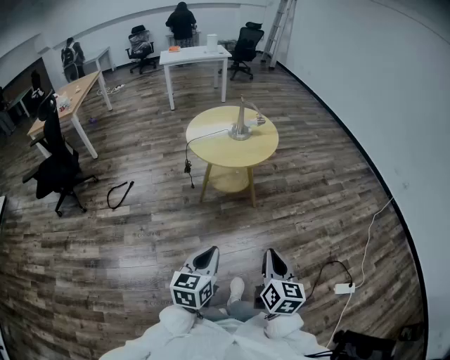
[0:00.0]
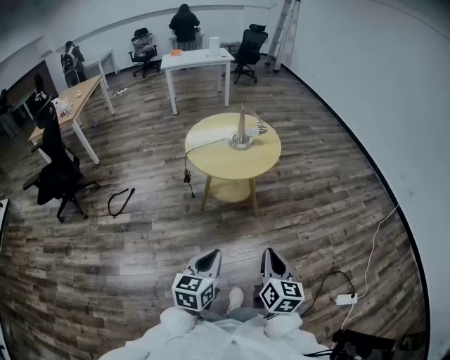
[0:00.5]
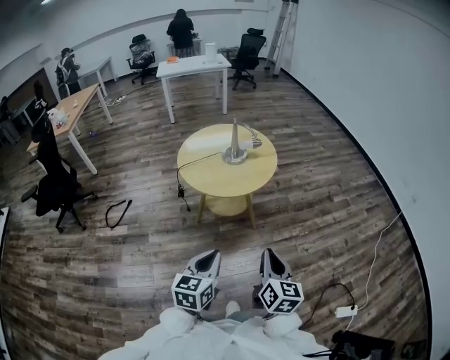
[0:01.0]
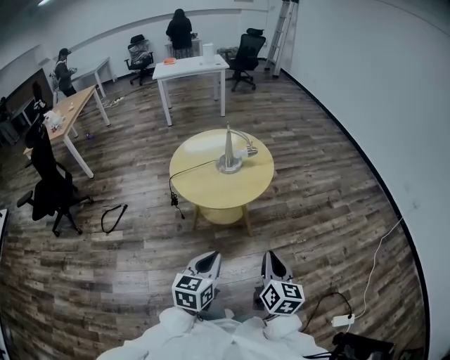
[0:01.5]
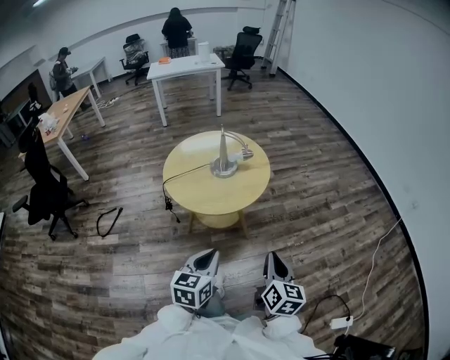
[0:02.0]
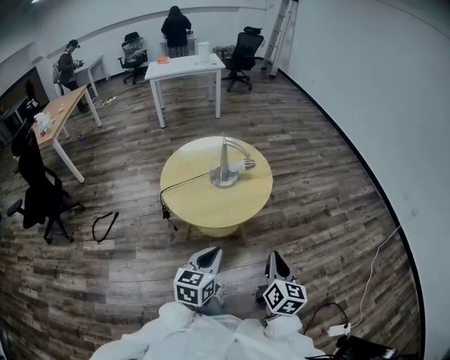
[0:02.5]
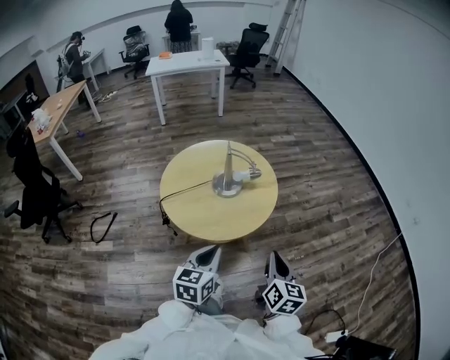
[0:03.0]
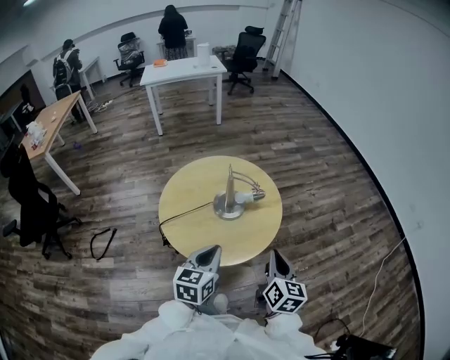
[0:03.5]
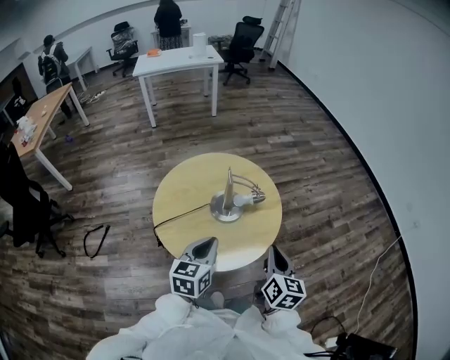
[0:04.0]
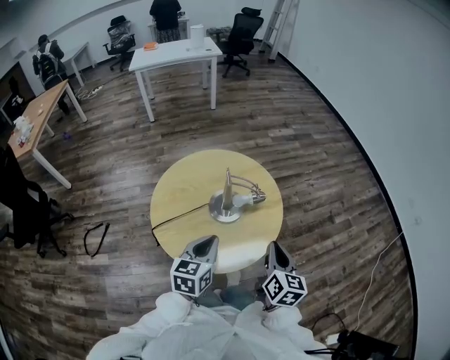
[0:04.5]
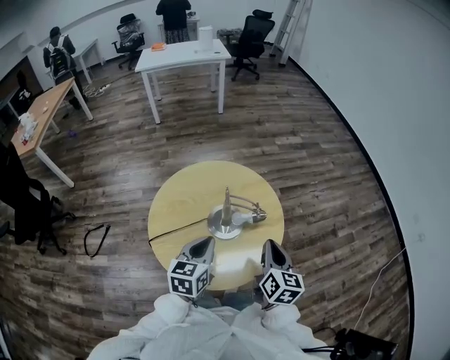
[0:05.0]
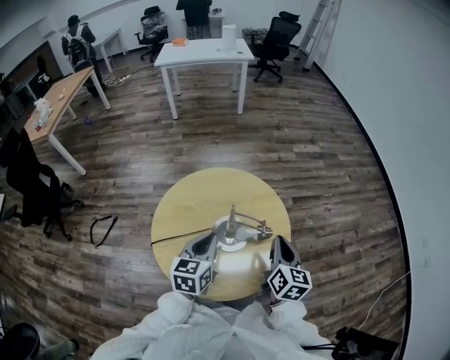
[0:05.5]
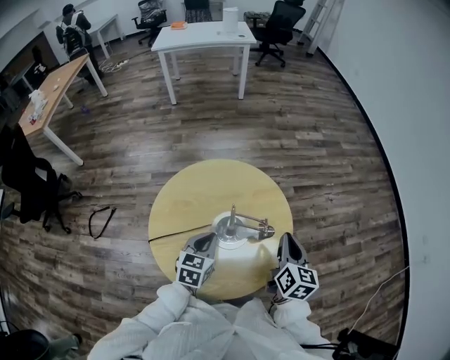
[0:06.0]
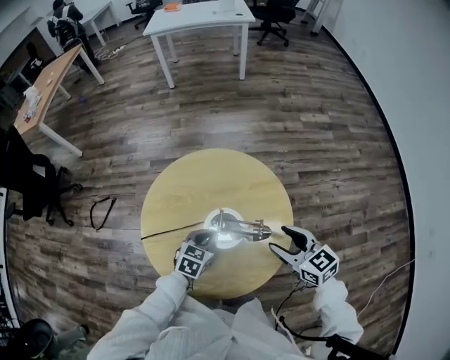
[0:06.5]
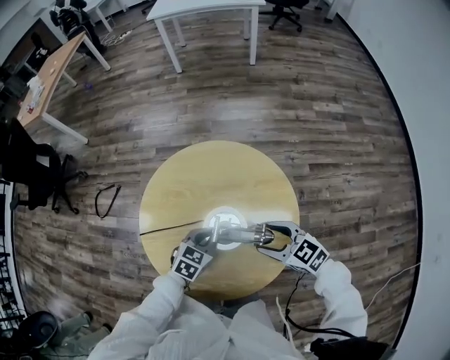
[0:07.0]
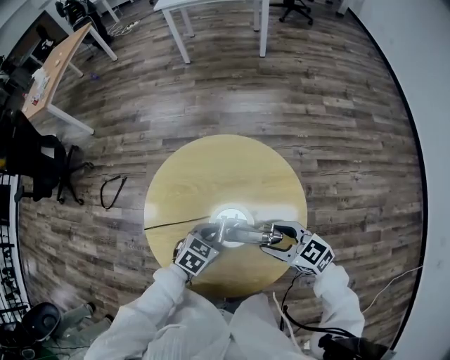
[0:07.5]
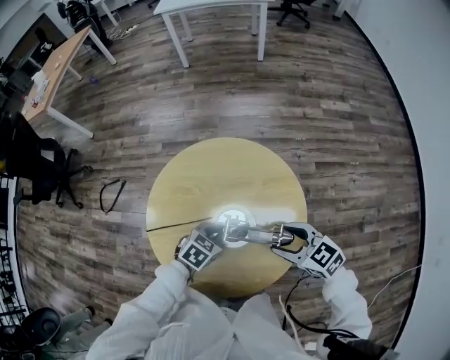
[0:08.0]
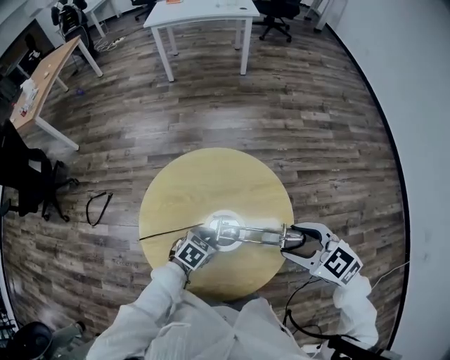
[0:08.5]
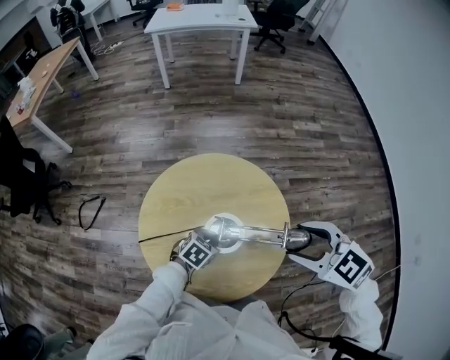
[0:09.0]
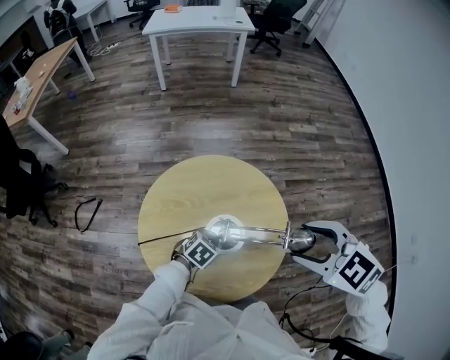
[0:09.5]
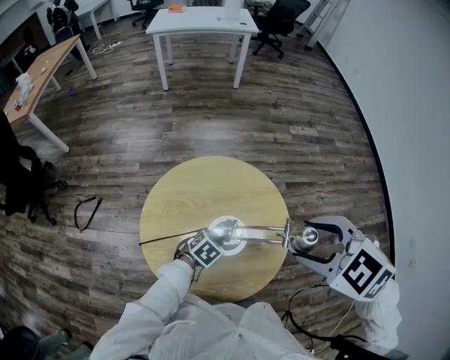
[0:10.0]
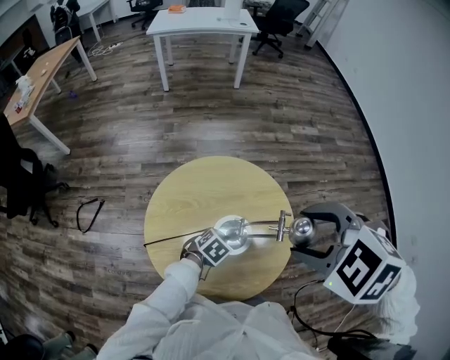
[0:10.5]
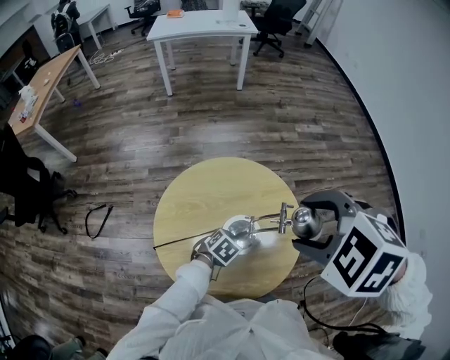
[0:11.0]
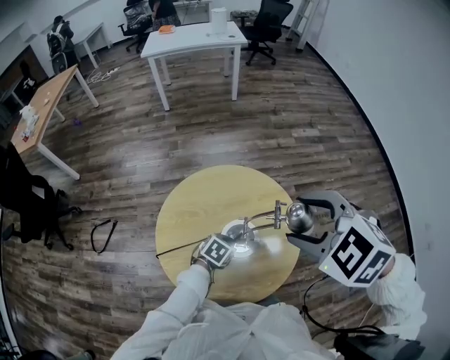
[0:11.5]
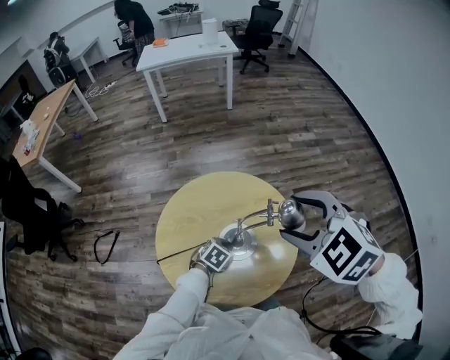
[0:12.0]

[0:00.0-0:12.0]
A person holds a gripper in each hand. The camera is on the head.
0:00.0 to 0:02.0: The grippers both shift forward by about 30 cm.
0:02.0 to 0:04.0: The two grippers go approximately 35 cm forward.
0:04.0 to 0:06.0: The left gripper travels forward and downward by approximately 20 cm; the right gripper travels forward by approximately 25 cm.
0:06.0 to 0:08.0: Both grippers travel together downward, about 10 cm. The left gripper turns by some 30 degrees; the right gripper swivels some 70 degrees, and opens up.
0:08.0 to 0:10.0: The right gripper goes approximately 25 cm upward, and rotates roughly 30 degrees.

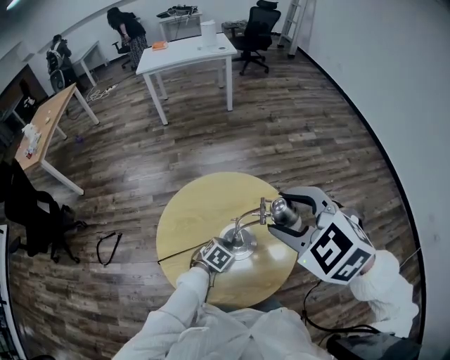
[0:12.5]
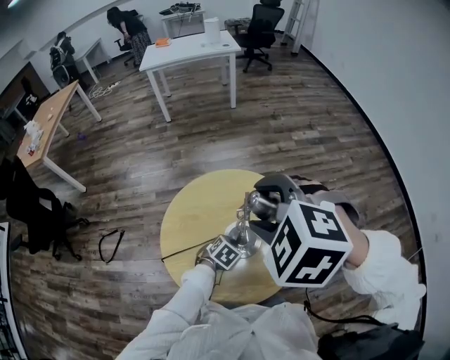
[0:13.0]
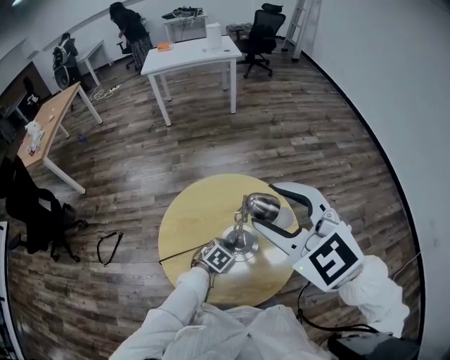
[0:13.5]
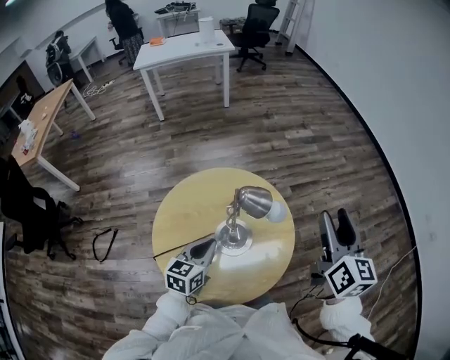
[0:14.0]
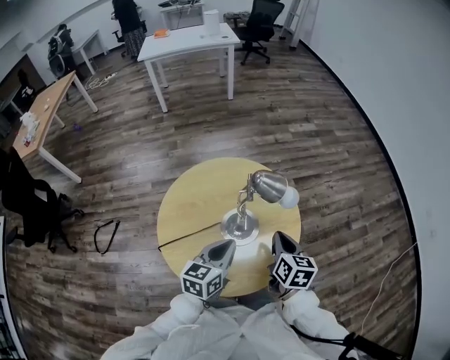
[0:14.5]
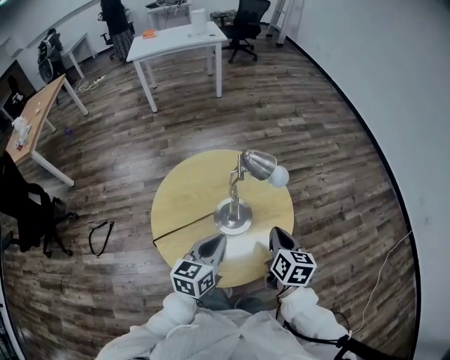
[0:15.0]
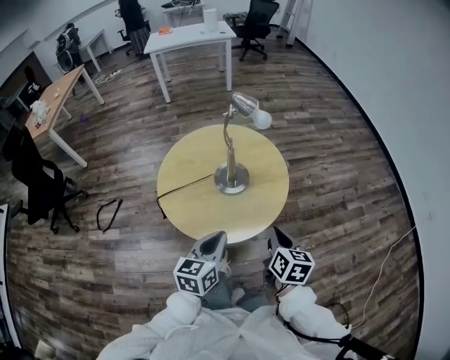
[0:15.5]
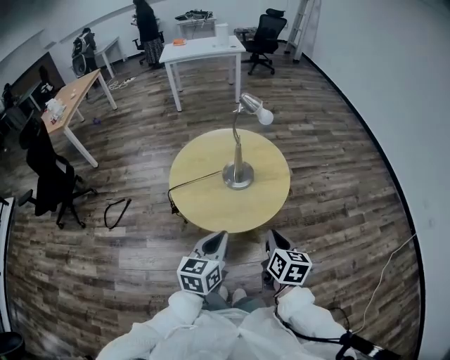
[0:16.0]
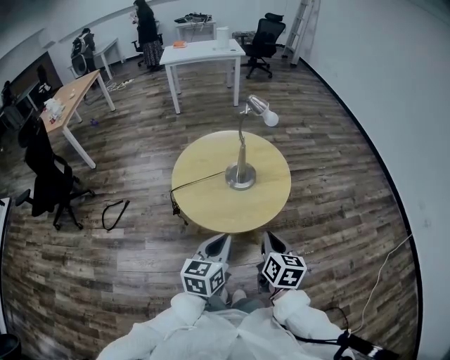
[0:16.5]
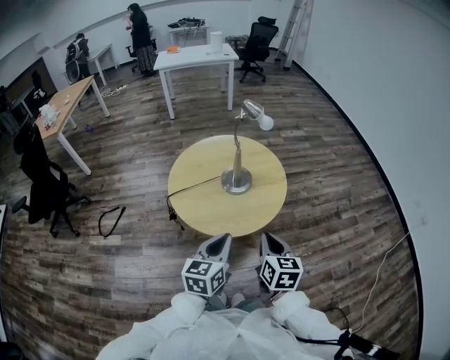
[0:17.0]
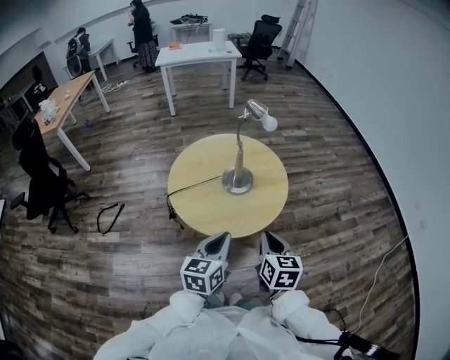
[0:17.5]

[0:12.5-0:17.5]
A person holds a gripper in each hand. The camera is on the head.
0:12.5 to 0:15.0: The left gripper is displaced upward and backward by some 20 cm, and tips its fingers upward by approximately 40 degrees; the right gripper shifts approximately 25 cm downward, rotates around the line of its fingers by approximately 70 degrees, clockwise from behind, and closes its fingers.
0:15.0 to 0:17.5: Both grippers travel together backward, roughly 25 cm.

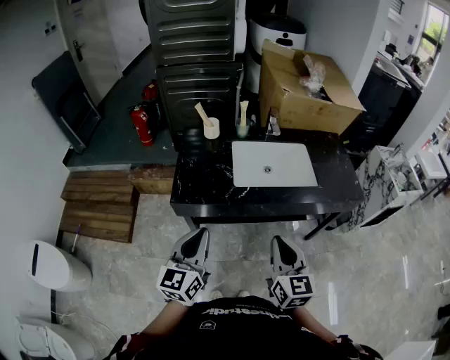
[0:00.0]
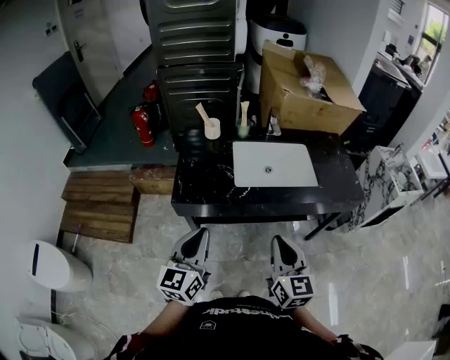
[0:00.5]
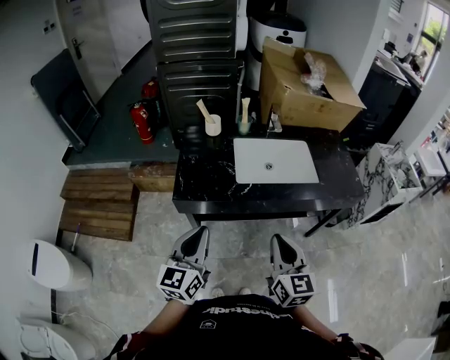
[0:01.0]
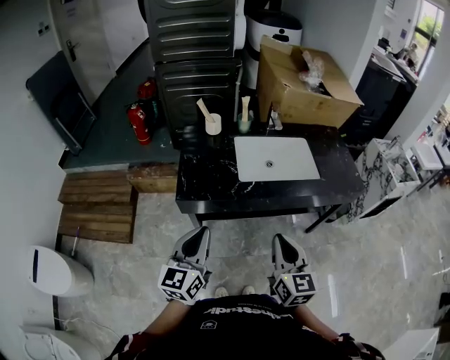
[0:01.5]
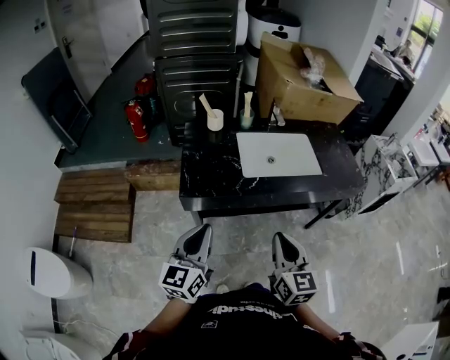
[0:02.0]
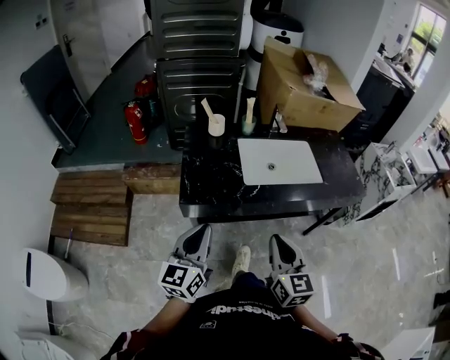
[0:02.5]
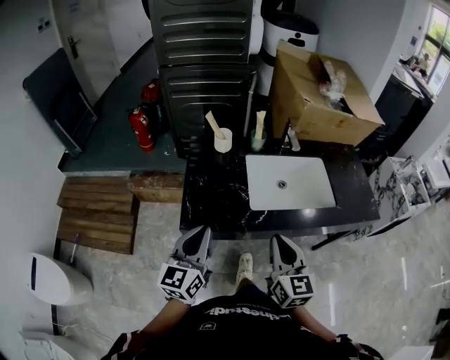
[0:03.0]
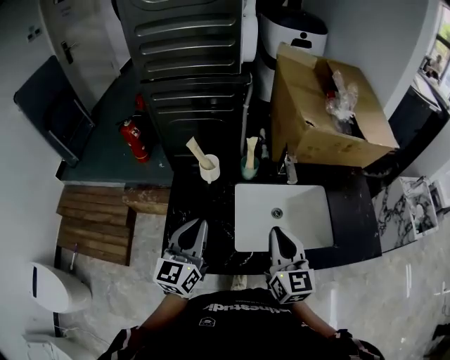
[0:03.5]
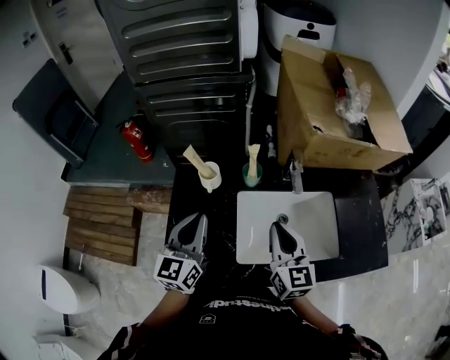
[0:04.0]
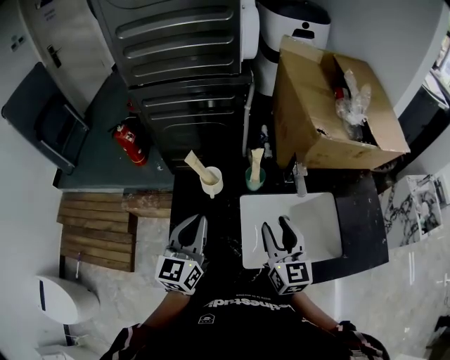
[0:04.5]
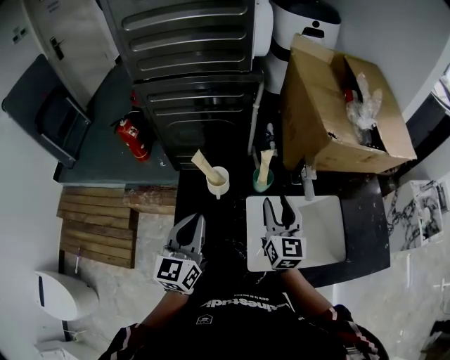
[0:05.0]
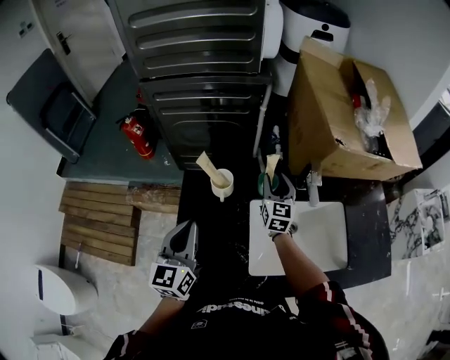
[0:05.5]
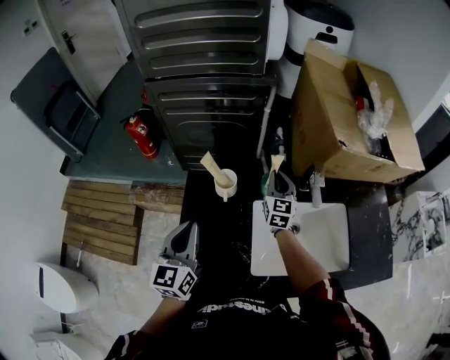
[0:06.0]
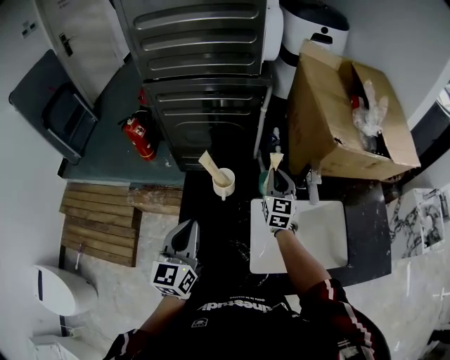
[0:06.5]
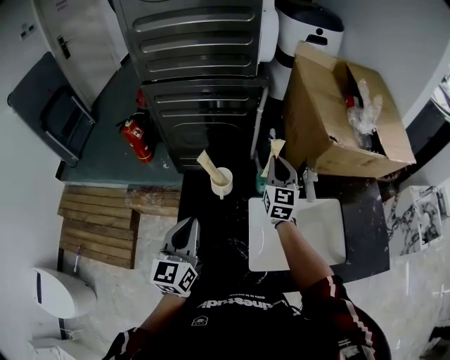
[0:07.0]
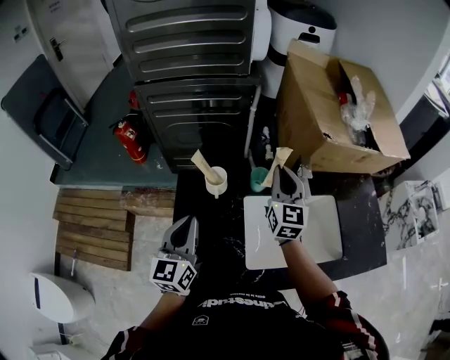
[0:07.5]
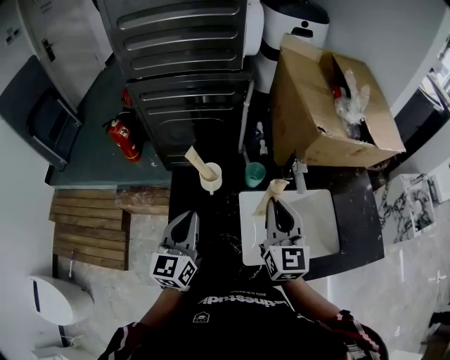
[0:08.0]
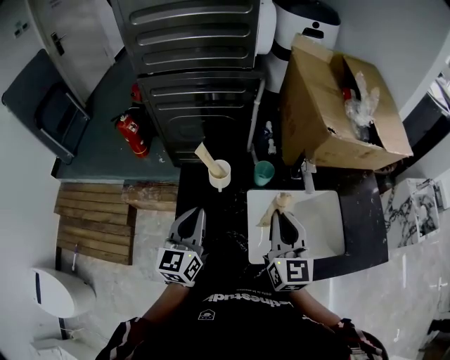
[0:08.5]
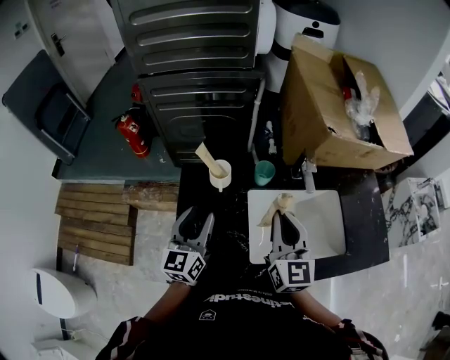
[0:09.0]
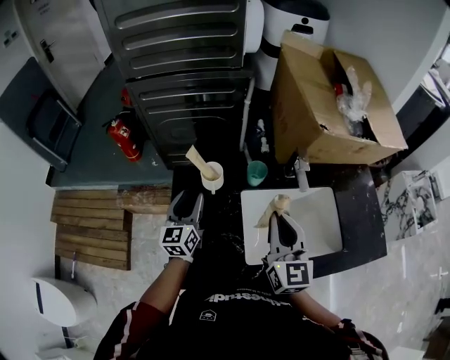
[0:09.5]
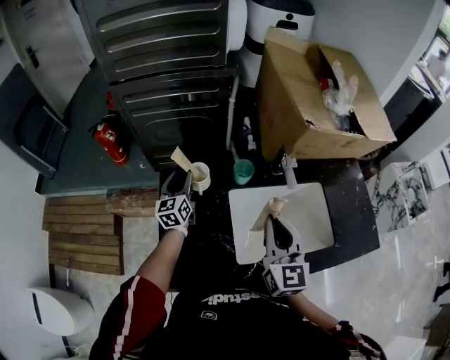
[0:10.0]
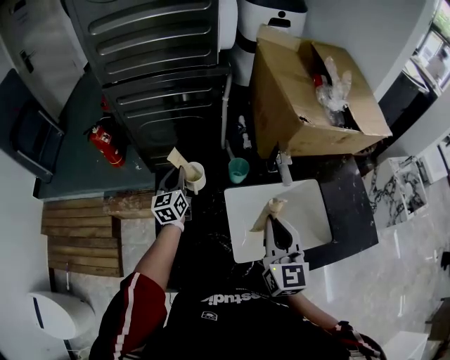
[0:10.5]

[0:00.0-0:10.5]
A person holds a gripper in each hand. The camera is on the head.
0:00.0 to 0:02.0: The grippers both shift to the left by about 5 cm.
0:02.0 to 0:04.0: Both grippers are carried forward, roughly 40 cm.
0:04.0 to 0:06.5: The left gripper goes approximately 10 cm to the left; the right gripper travels forward by some 25 cm, and opens and closes again.
0:06.5 to 0:08.5: The right gripper travels backward and upward by approximately 25 cm.
0:08.5 to 0:10.5: The left gripper heads forward and downward, covering about 20 cm, and opens and closes again.
